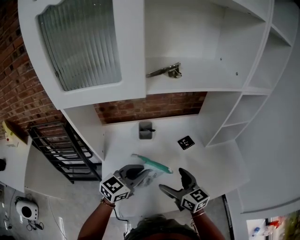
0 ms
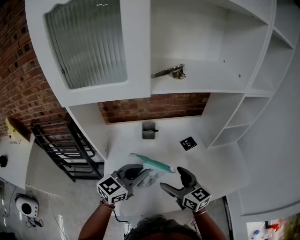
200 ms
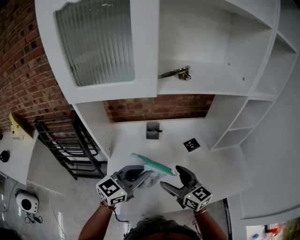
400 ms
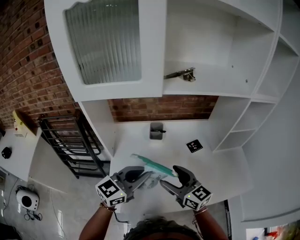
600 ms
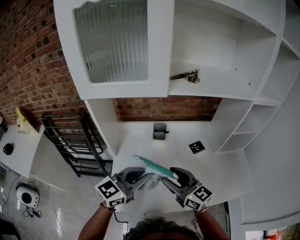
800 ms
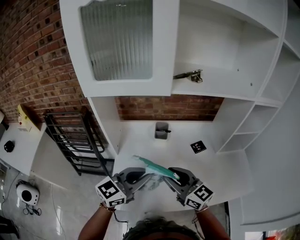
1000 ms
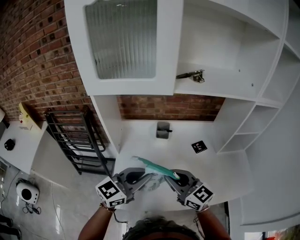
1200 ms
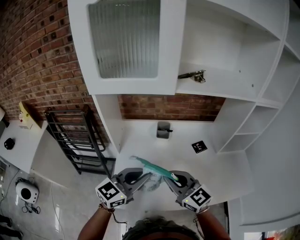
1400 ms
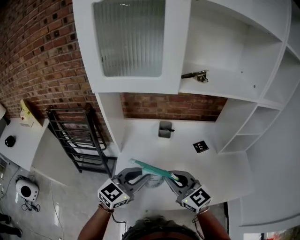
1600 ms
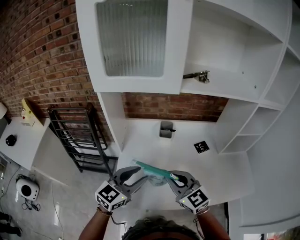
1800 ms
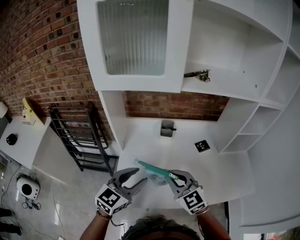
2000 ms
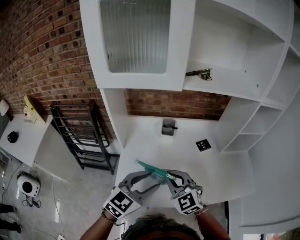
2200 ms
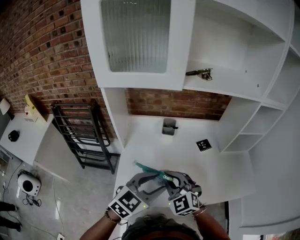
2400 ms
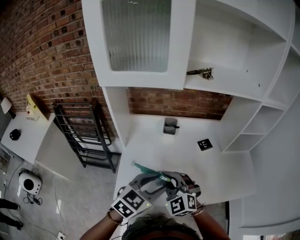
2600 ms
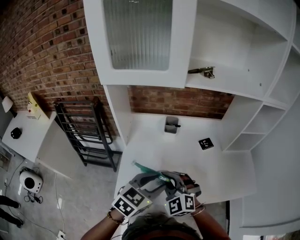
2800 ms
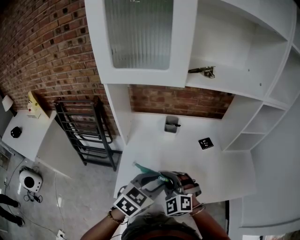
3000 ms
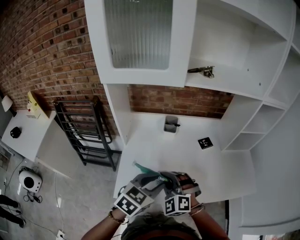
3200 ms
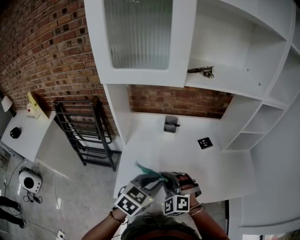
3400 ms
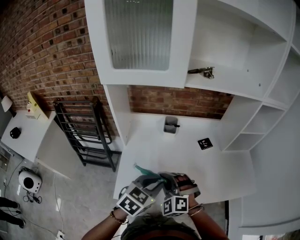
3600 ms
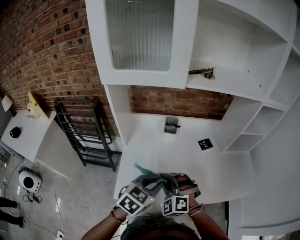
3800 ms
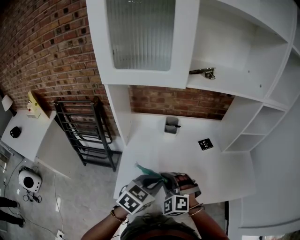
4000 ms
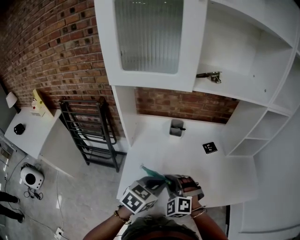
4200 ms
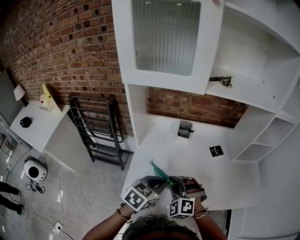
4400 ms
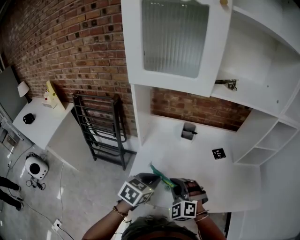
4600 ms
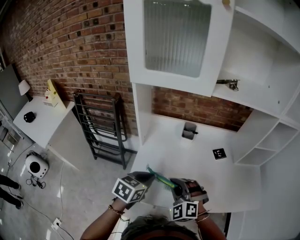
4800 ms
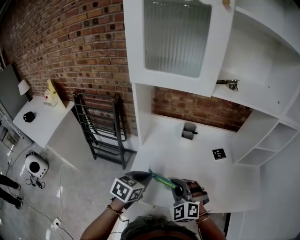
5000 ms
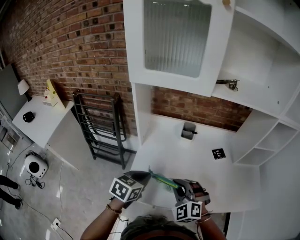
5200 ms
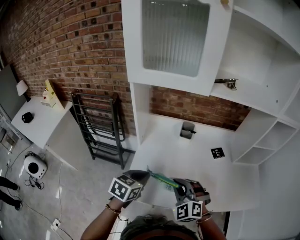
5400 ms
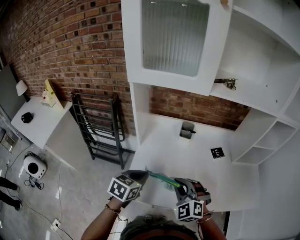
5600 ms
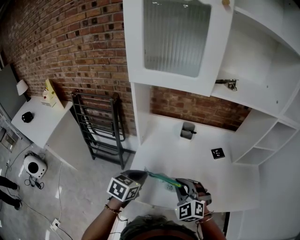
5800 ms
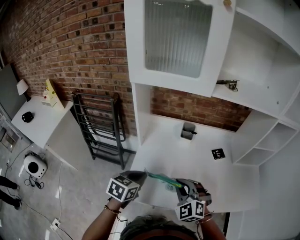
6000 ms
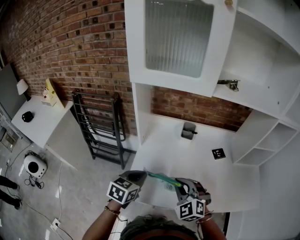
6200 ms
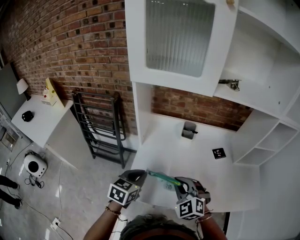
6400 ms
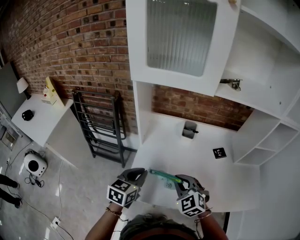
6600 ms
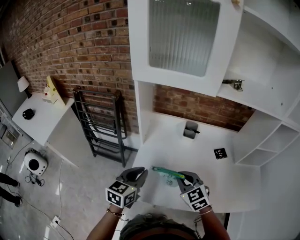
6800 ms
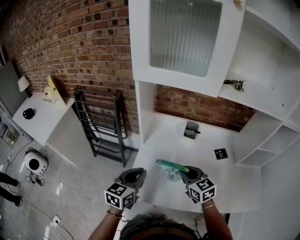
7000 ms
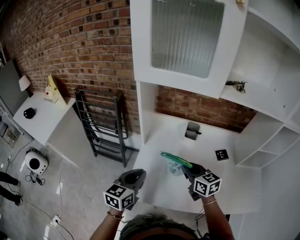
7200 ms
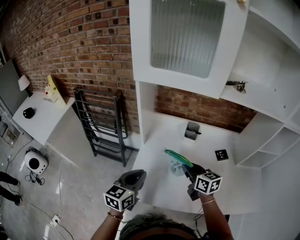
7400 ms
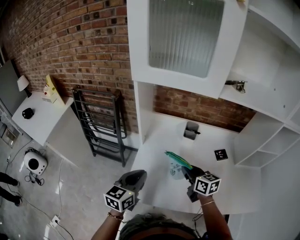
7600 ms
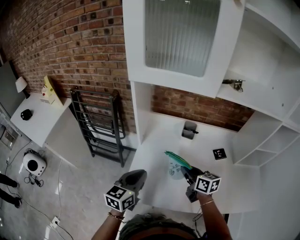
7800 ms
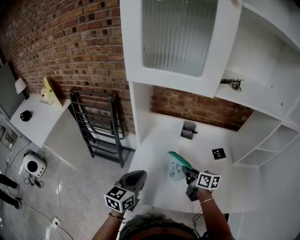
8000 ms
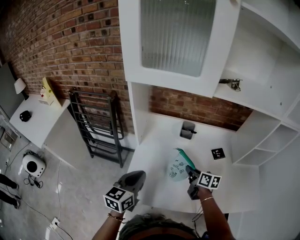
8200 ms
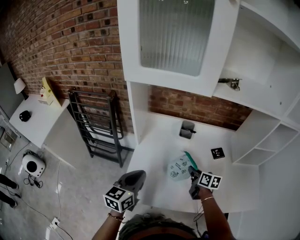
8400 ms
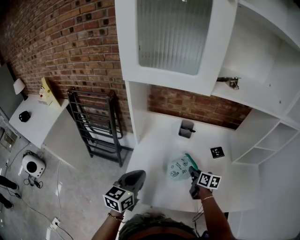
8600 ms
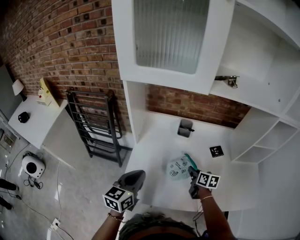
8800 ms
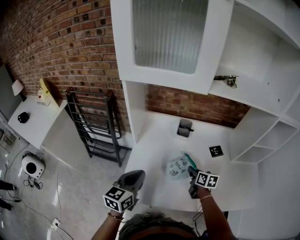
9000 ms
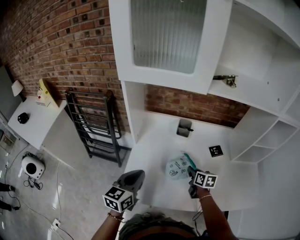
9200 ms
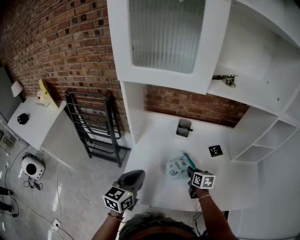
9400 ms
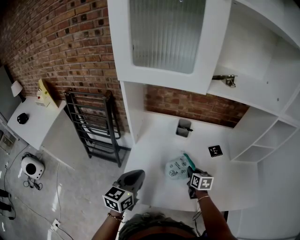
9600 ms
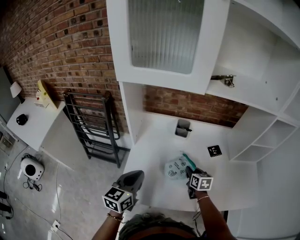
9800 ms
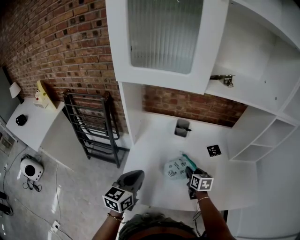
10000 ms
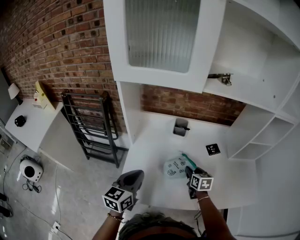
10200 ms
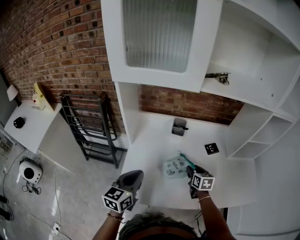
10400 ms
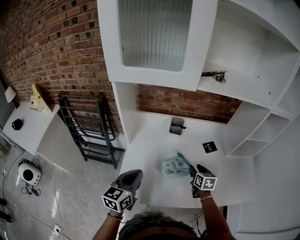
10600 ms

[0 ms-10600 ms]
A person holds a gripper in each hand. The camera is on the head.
0 ms to 1600 ms: The left gripper goes some 10 cm backward and to the left, while the right gripper goes approximately 15 cm to the left, upward and backward, changes its angle by about 30 degrees, and closes up.
1600 ms to 3000 ms: The right gripper shifts roughly 5 cm downward, and rotates around the line of its fingers by about 40 degrees, counterclockwise from behind. Meanwhile the left gripper changes place by about 5 cm, and rotates roughly 20 degrees.
3000 ms to 4600 ms: The left gripper heads to the left, covering about 5 cm.
4600 ms to 6000 ms: The left gripper shifts approximately 5 cm to the left.
6000 ms to 7600 ms: The right gripper moves forward, about 10 cm, and rolls clockwise, seen from behind, by approximately 60 degrees. Meanwhile the left gripper changes its angle by approximately 20 degrees.
7600 ms to 9000 ms: The right gripper goes approximately 15 cm downward and to the right, and turns by approximately 20 degrees.
9000 ms to 10600 ms: The right gripper goes roughly 5 cm to the right.

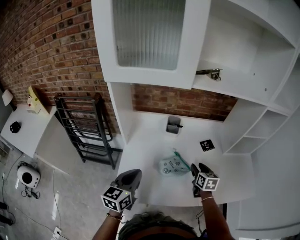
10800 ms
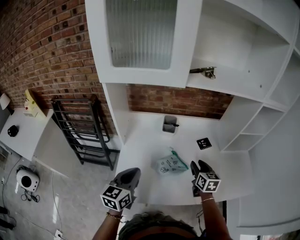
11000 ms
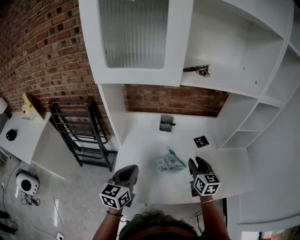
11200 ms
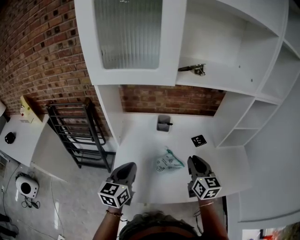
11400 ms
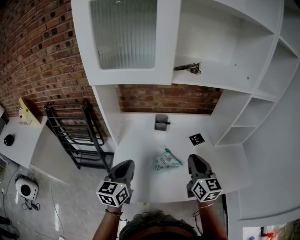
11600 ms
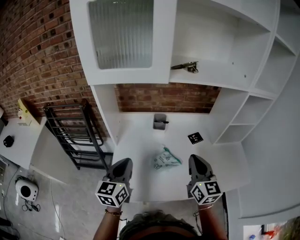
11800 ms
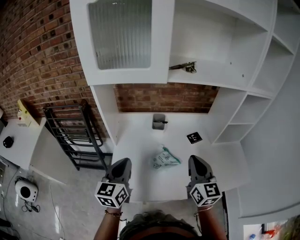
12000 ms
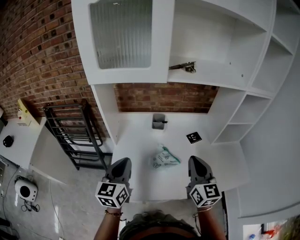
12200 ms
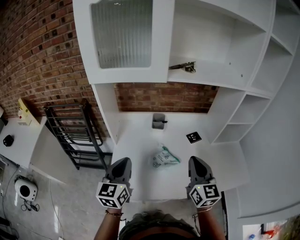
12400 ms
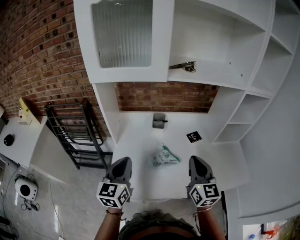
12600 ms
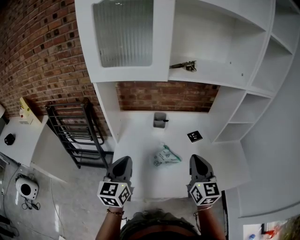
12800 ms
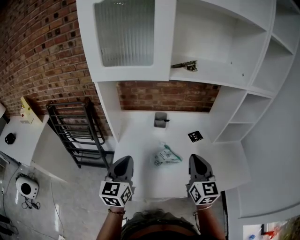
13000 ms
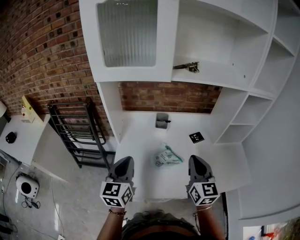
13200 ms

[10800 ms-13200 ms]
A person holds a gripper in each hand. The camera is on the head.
10800 ms to 12000 ms: The left gripper is displaced upward by roughly 5 cm, while the right gripper shifts roughly 25 cm upward and backward, and tips its fingers upward by about 30 degrees.
12000 ms to 13200 ms: There are only small adjustments of the grippers.

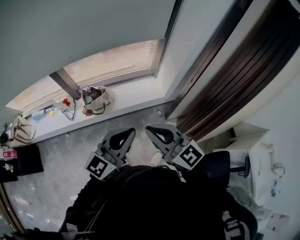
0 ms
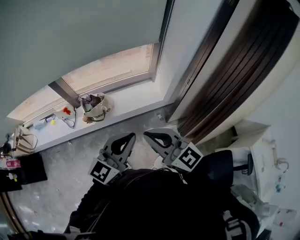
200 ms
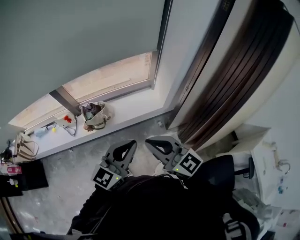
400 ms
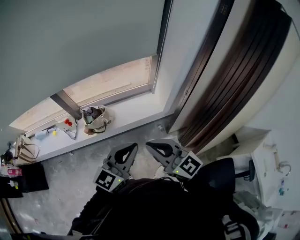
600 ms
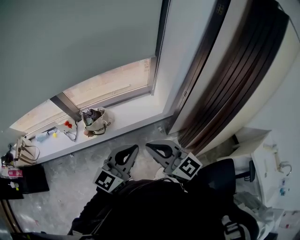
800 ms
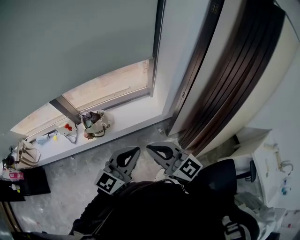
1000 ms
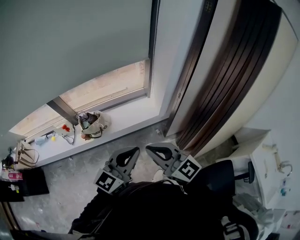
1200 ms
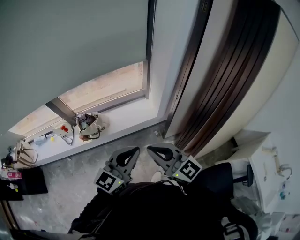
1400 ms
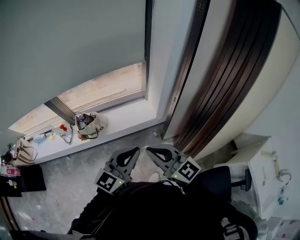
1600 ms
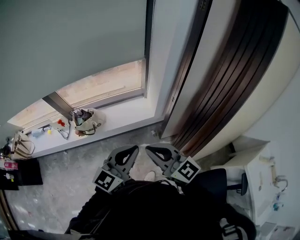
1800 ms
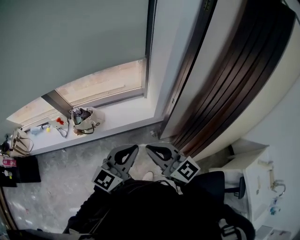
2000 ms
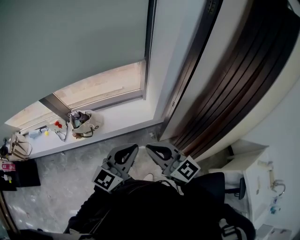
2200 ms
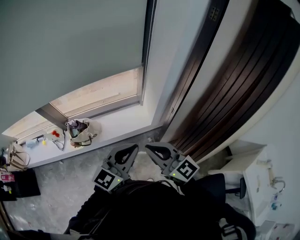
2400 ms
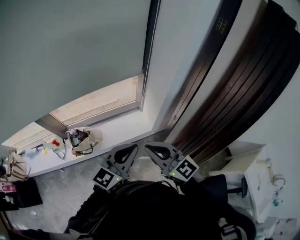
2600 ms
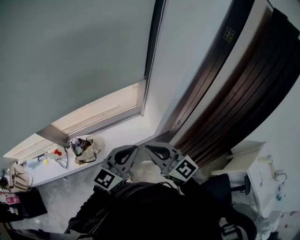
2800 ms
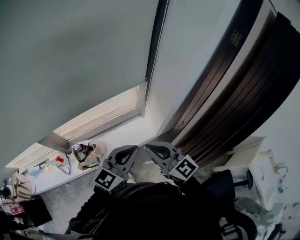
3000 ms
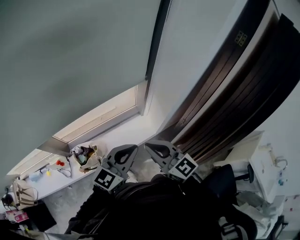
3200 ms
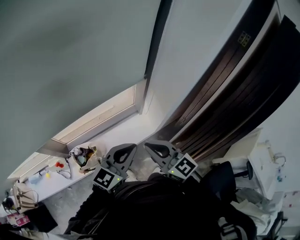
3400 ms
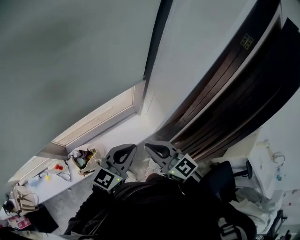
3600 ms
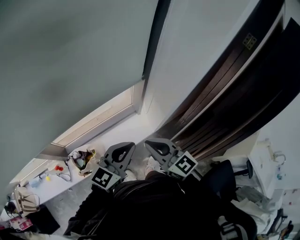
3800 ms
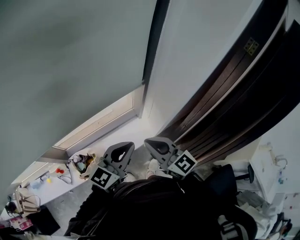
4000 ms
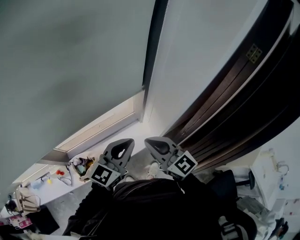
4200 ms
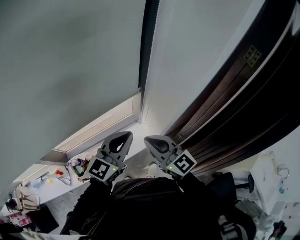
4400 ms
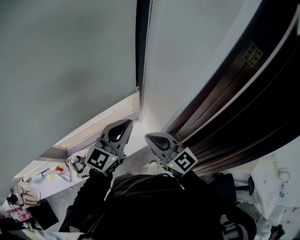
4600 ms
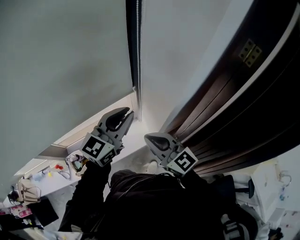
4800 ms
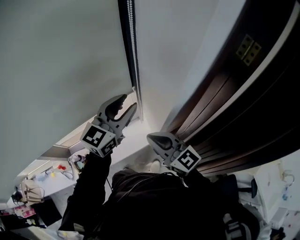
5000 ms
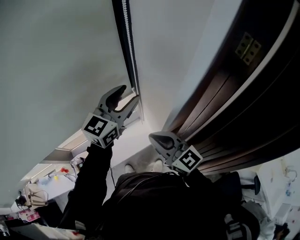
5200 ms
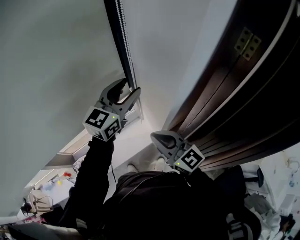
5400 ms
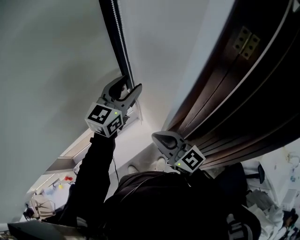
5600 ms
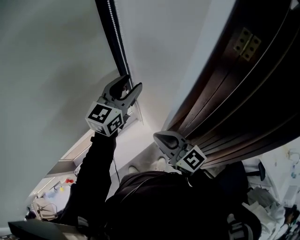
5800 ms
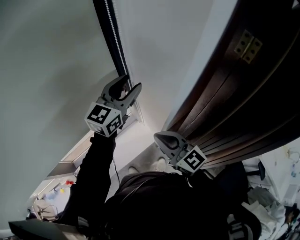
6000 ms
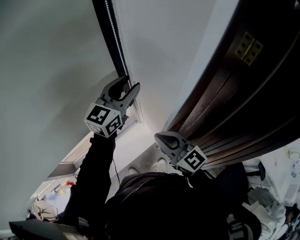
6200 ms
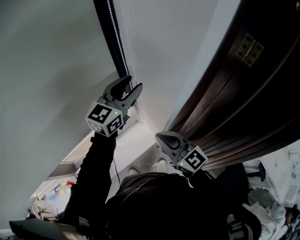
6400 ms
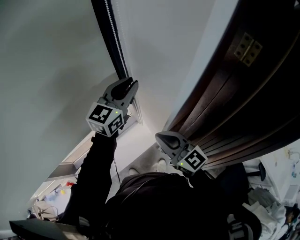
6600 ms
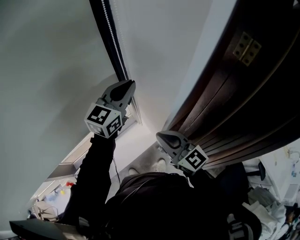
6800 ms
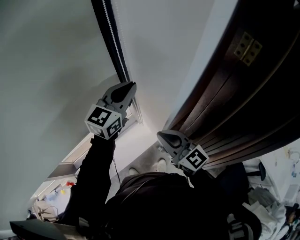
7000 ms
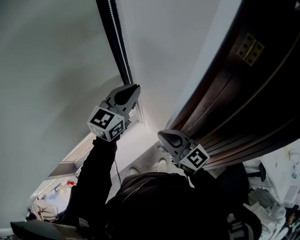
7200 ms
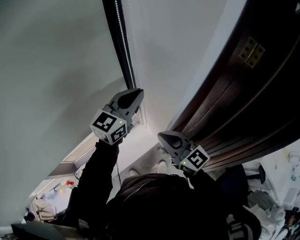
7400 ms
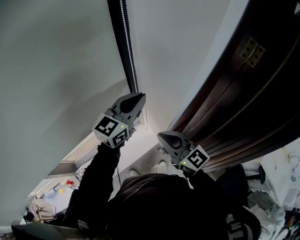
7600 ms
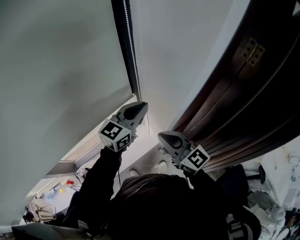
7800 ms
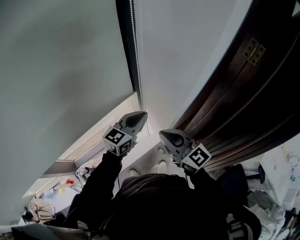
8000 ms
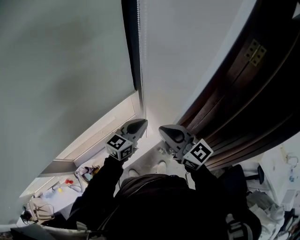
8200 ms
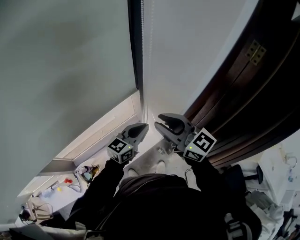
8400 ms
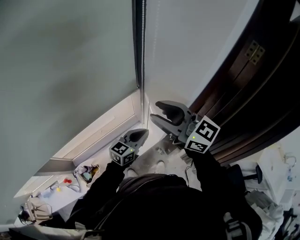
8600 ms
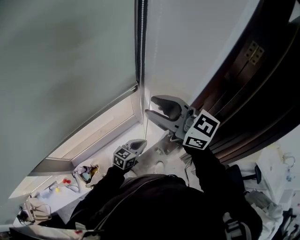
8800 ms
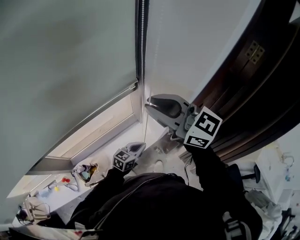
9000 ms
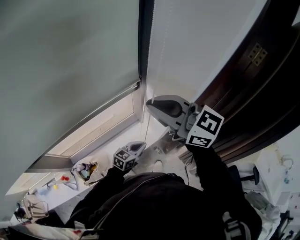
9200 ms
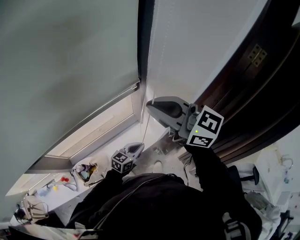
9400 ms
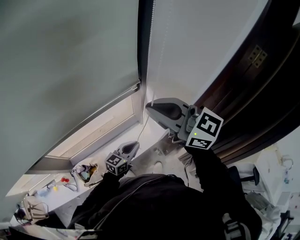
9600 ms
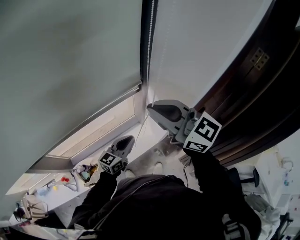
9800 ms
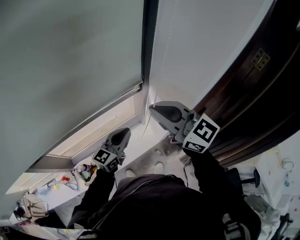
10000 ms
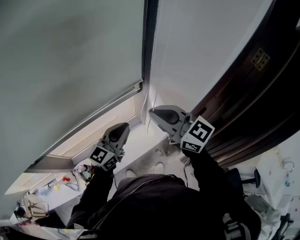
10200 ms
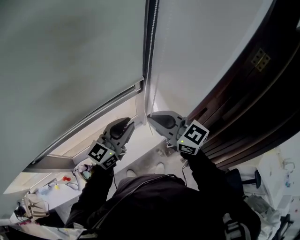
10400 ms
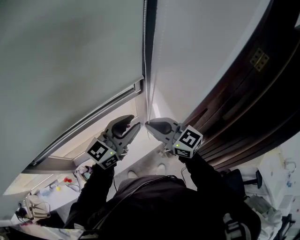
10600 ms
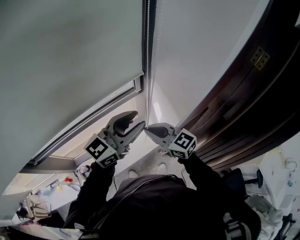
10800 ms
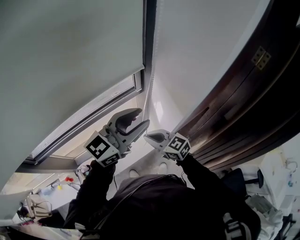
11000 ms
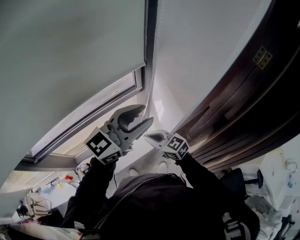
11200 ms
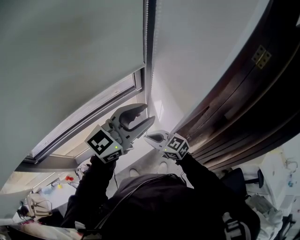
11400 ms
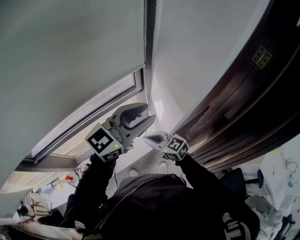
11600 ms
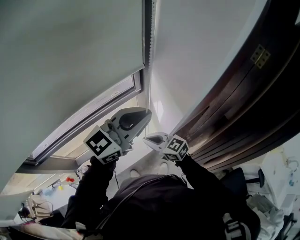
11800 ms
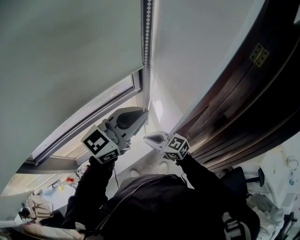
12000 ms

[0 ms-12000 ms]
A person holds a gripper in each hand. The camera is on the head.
0 ms to 1600 ms: Both grippers travel together to the right, approximately 15 cm.
1600 ms to 3000 ms: The grippers both shift forward by about 25 cm.
3000 ms to 4400 ms: The grippers both shift forward by approximately 15 cm.
4400 ms to 6000 ms: The right gripper travels to the right and forward by roughly 10 cm. The left gripper travels forward and to the right by roughly 25 cm, and opens its fingers.
6000 ms to 7600 ms: The left gripper closes.
7600 ms to 9000 ms: The right gripper shifts roughly 15 cm upward and to the left, while the left gripper shifts some 35 cm downward and backward, and turns by some 30 degrees.
9000 ms to 10400 ms: The left gripper goes approximately 25 cm upward, and swivels roughly 30 degrees; the right gripper is displaced downward by roughly 10 cm.
10400 ms to 12000 ms: The left gripper moves upward and to the right, about 10 cm; the right gripper shifts approximately 20 cm downward.
